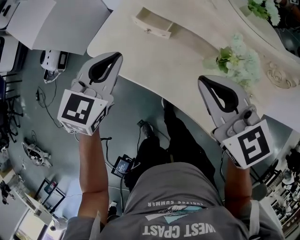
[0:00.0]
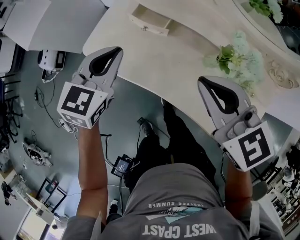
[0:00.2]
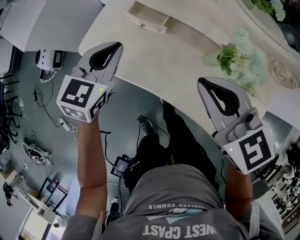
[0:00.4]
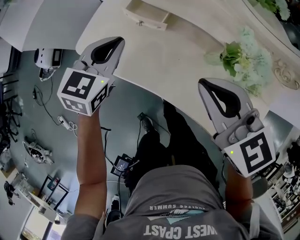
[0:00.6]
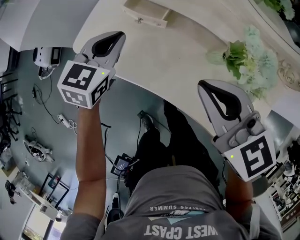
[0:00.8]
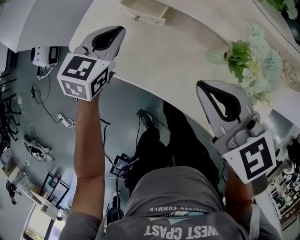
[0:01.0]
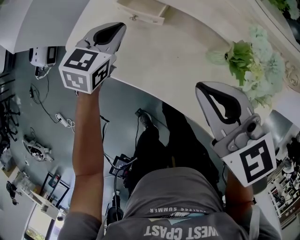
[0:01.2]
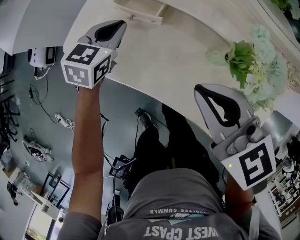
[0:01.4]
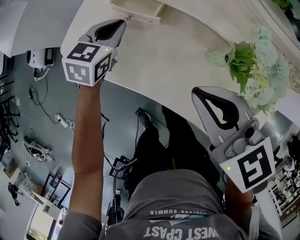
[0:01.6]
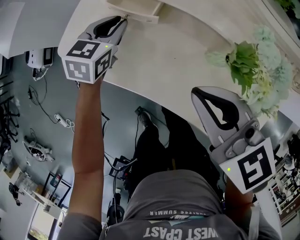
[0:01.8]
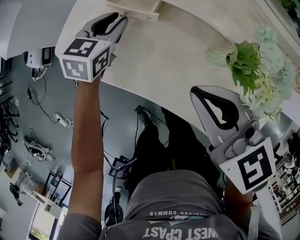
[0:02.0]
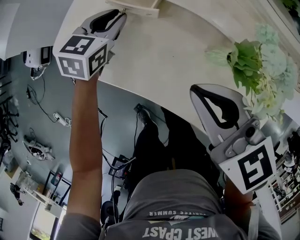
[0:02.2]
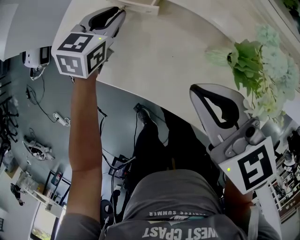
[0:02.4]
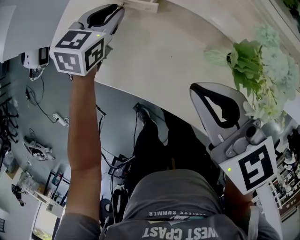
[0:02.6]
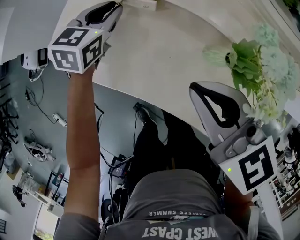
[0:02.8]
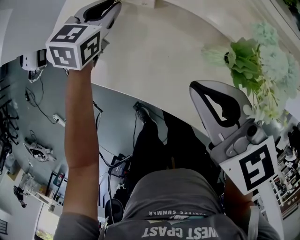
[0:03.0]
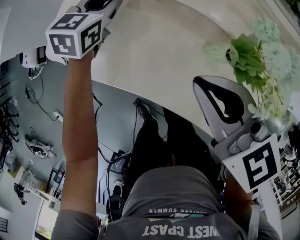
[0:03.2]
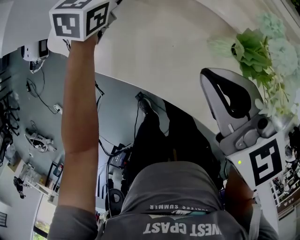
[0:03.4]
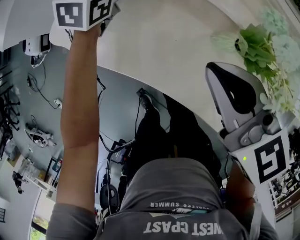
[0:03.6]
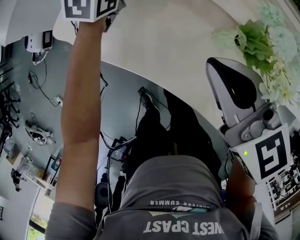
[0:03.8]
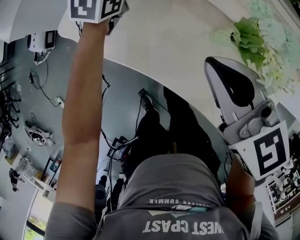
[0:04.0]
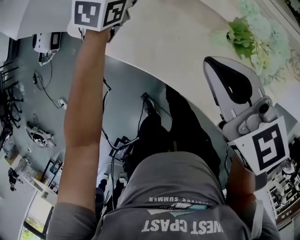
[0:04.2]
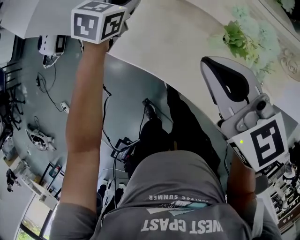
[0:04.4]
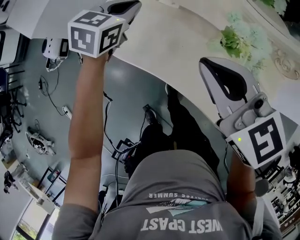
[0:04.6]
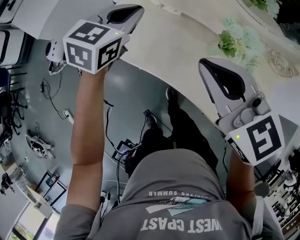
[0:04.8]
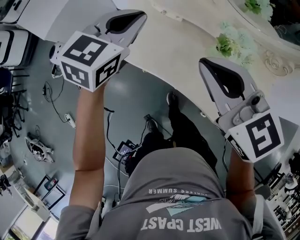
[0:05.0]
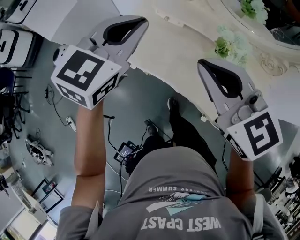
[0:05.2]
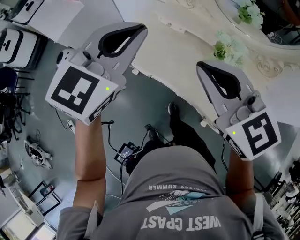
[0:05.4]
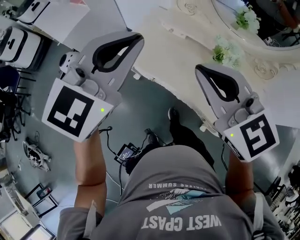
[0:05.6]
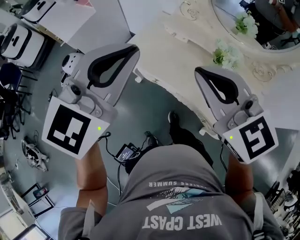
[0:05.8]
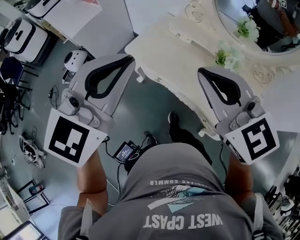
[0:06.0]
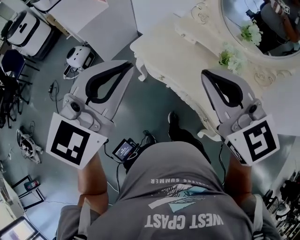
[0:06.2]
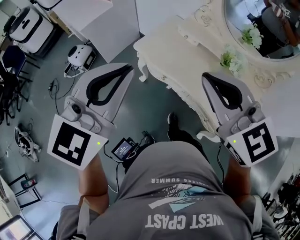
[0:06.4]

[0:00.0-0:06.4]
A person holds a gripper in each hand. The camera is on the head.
0:00.0 to 0:01.6: The left gripper shifts about 20 cm downward and forward. The right gripper heads downward, covering some 10 cm.
0:01.6 to 0:03.2: The left gripper heads forward, covering some 5 cm.
0:03.2 to 0:04.8: The right gripper heads upward and backward, covering about 15 cm, while the left gripper travels upward and backward by roughly 25 cm.
0:04.8 to 0:06.4: The right gripper moves backward, upward and to the left, about 30 cm, while the left gripper moves backward and upward, roughly 40 cm, and swivels roughly 20 degrees.

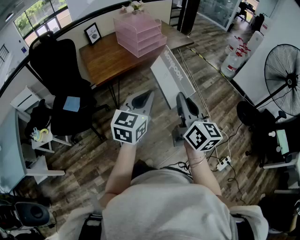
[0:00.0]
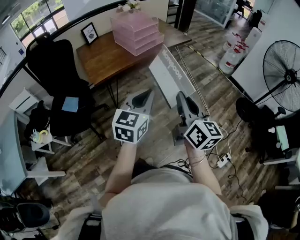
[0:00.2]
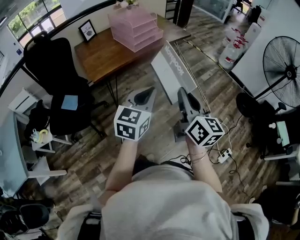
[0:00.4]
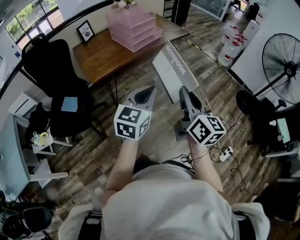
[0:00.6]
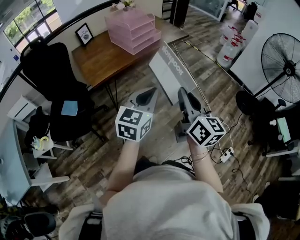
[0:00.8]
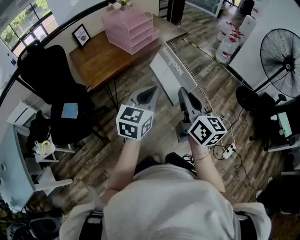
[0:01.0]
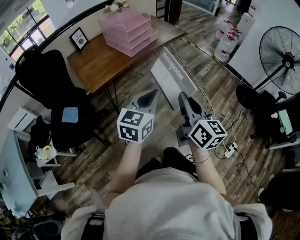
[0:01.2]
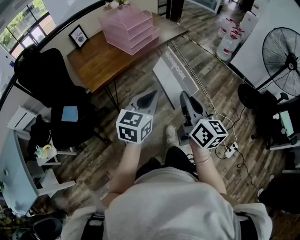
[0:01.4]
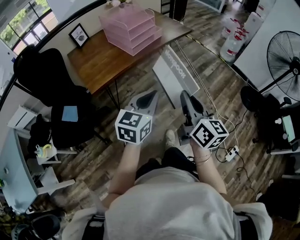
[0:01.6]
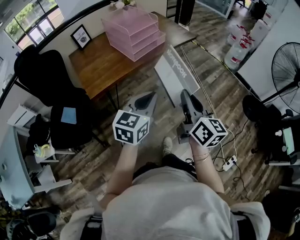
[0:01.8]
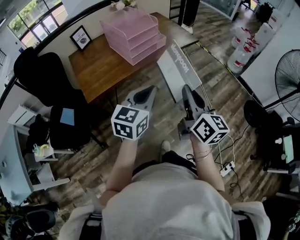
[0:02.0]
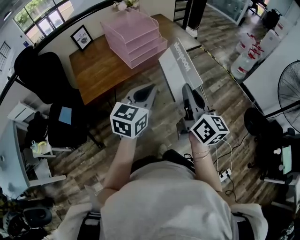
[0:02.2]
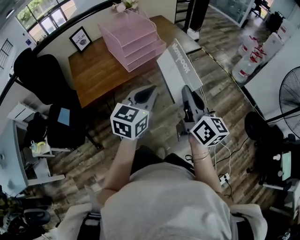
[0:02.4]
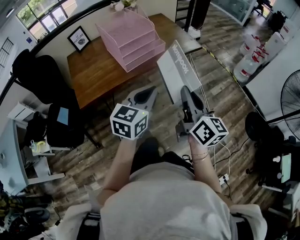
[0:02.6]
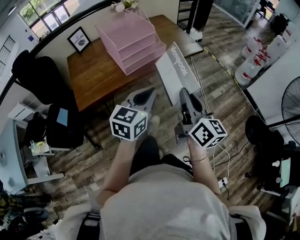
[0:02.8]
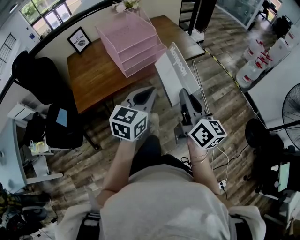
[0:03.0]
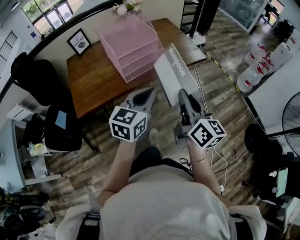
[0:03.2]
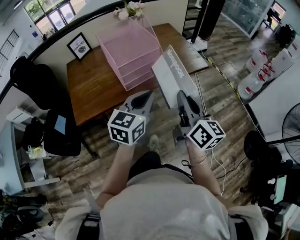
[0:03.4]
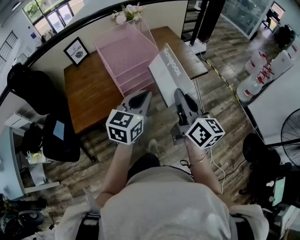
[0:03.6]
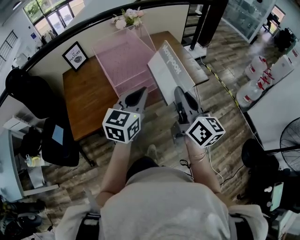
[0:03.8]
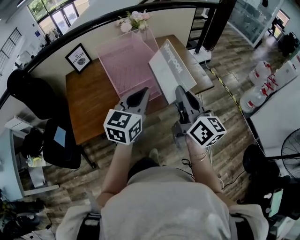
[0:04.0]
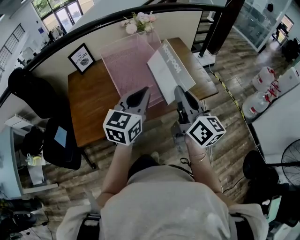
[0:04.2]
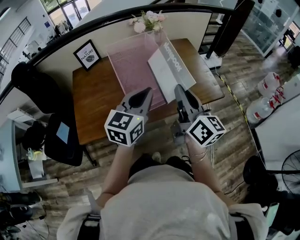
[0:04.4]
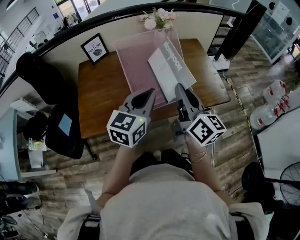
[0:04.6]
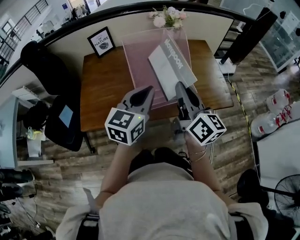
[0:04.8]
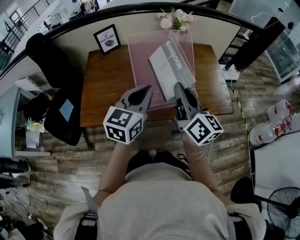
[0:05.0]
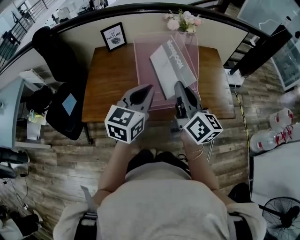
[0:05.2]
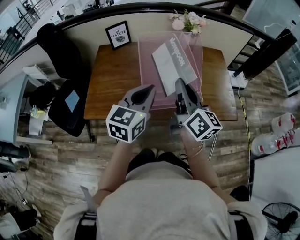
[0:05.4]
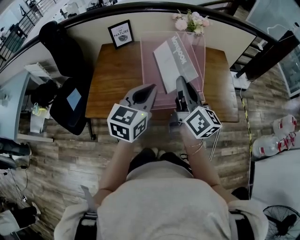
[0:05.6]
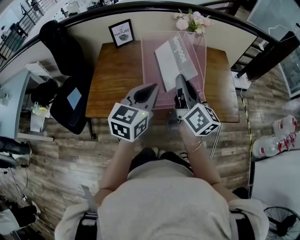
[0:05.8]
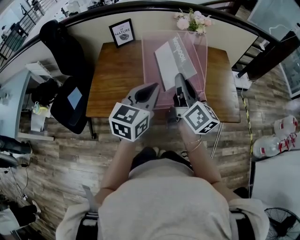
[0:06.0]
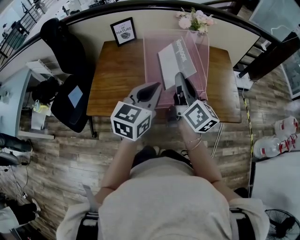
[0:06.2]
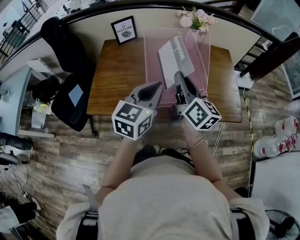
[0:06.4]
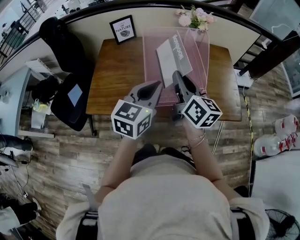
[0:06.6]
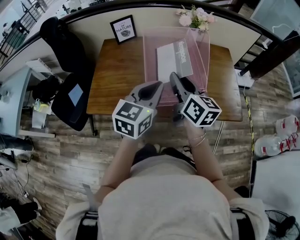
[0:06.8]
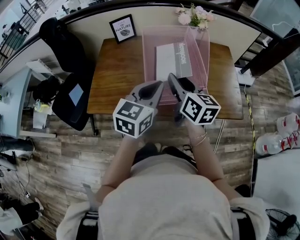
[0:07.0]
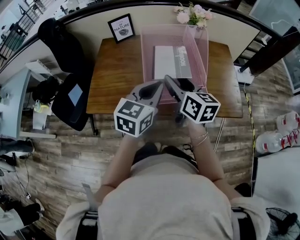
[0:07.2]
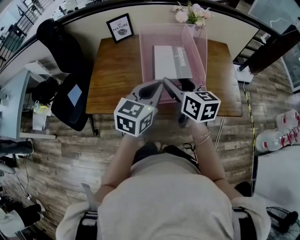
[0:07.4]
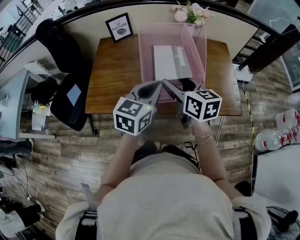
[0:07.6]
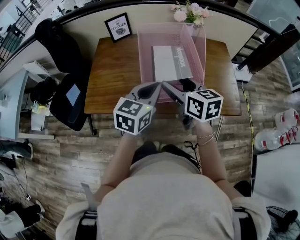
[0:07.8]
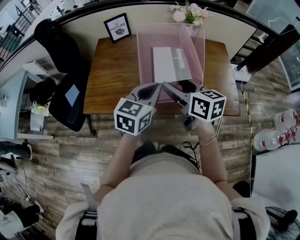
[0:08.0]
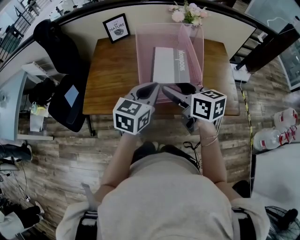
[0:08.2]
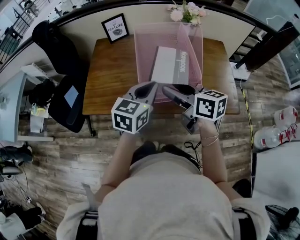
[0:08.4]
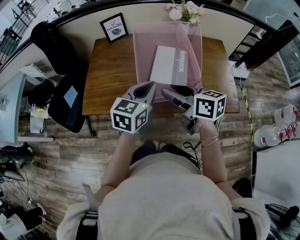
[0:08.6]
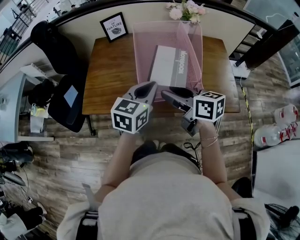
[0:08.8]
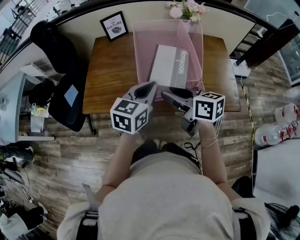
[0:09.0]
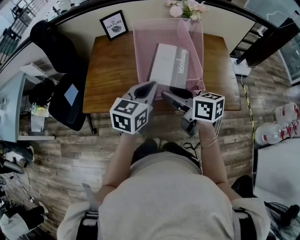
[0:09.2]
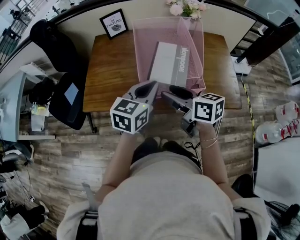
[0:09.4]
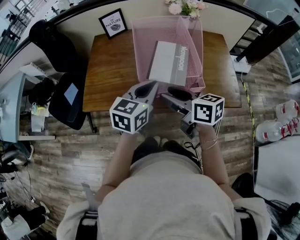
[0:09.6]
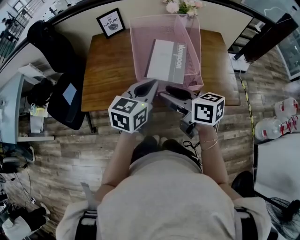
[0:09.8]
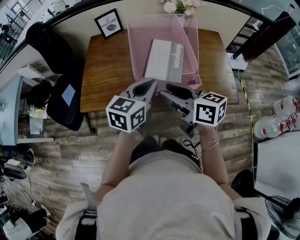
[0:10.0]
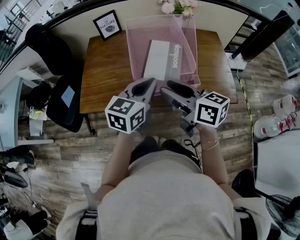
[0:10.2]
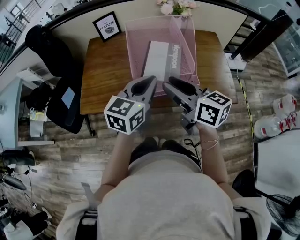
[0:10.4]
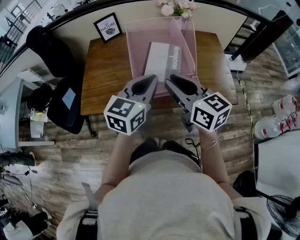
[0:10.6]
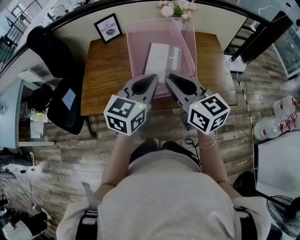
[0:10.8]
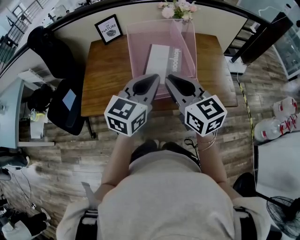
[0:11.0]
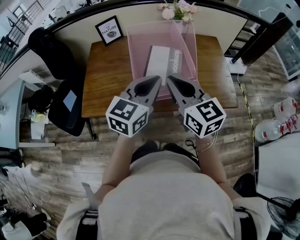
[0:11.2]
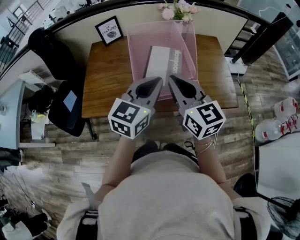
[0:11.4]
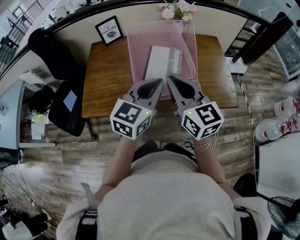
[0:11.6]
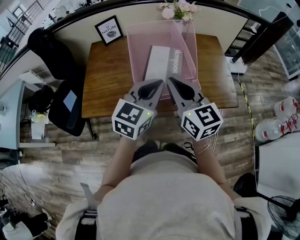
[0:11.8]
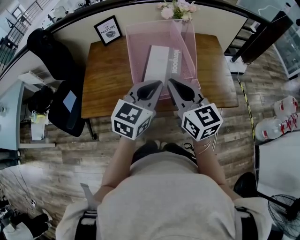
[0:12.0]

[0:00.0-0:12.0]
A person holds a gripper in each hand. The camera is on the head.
0:00.0 to 0:01.6: Both grippers move forward, approximately 10 cm.
0:01.6 to 0:03.0: Both grippers travel together forward, approximately 25 cm.
0:03.0 to 0:04.4: The two grippers go roughly 25 cm forward and to the left.
0:04.4 to 0:06.0: The left gripper changes place by about 5 cm; the right gripper goes about 10 cm forward and to the left.
0:06.0 to 0:07.6: The right gripper shifts roughly 5 cm downward, swivels some 40 degrees, and opens up.
0:07.6 to 0:09.0: The right gripper turns by approximately 20 degrees.
0:09.0 to 0:10.4: The right gripper moves upward, roughly 5 cm.
0:10.4 to 0:12.0: The right gripper rotates roughly 30 degrees, and closes.

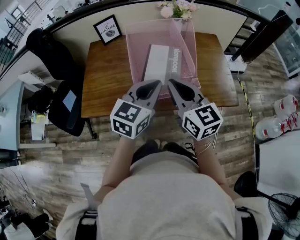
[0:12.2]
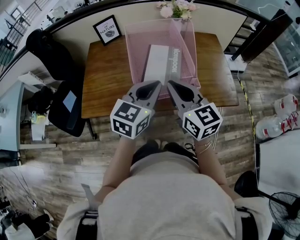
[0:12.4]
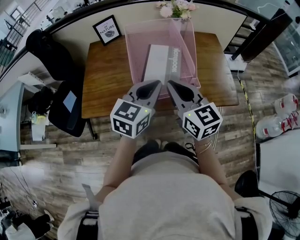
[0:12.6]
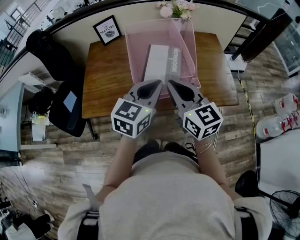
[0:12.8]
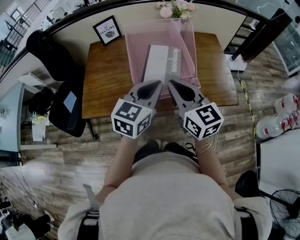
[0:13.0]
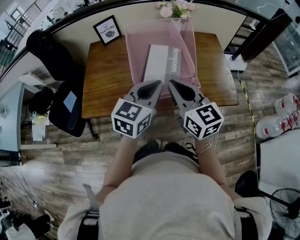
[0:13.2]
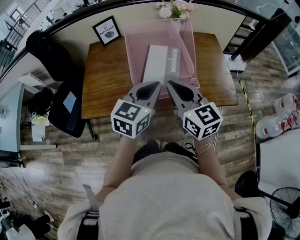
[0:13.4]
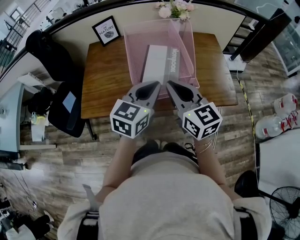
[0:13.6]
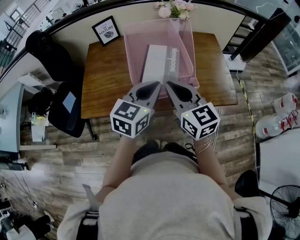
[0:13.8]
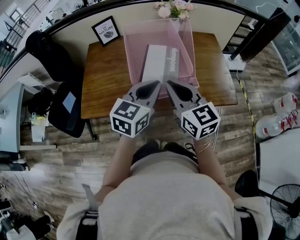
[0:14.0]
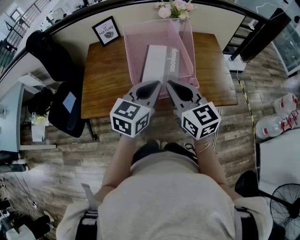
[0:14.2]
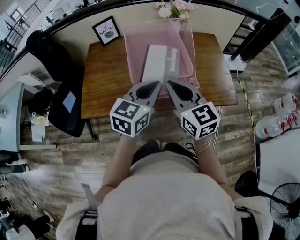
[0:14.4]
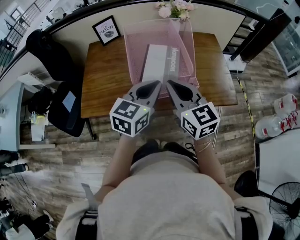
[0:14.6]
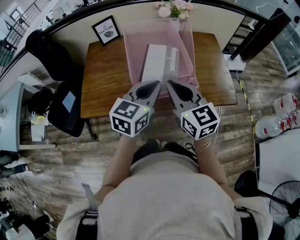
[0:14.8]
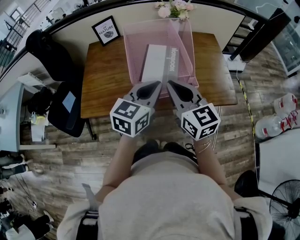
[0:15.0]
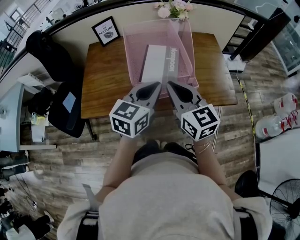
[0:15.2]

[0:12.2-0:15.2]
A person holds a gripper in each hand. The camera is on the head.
0:12.2 to 0:13.8: Both grippers stay put.
0:13.8 to 0:15.2: Both grippers stay about where they are.

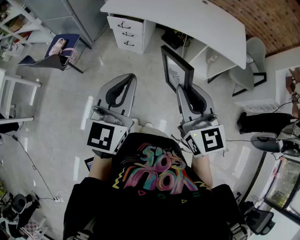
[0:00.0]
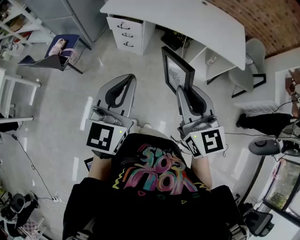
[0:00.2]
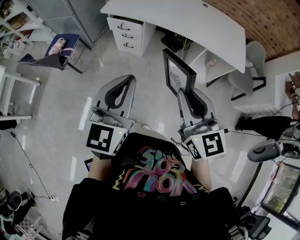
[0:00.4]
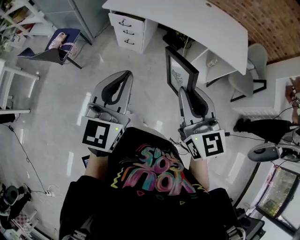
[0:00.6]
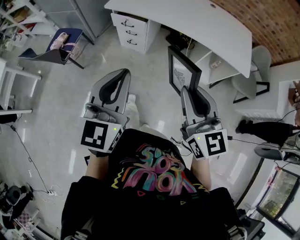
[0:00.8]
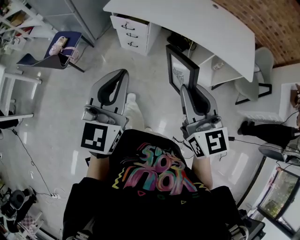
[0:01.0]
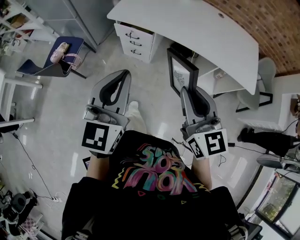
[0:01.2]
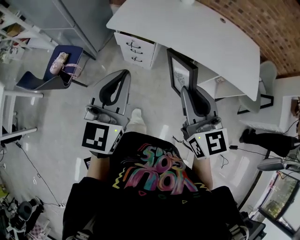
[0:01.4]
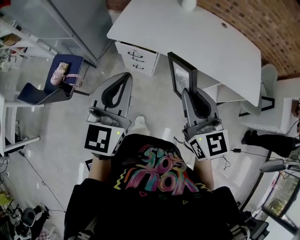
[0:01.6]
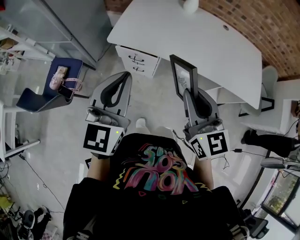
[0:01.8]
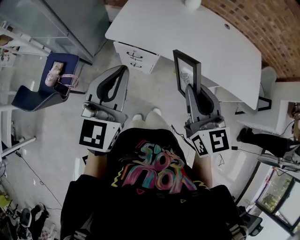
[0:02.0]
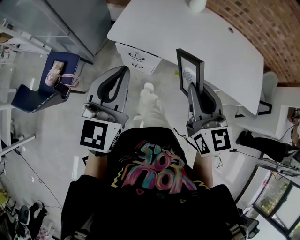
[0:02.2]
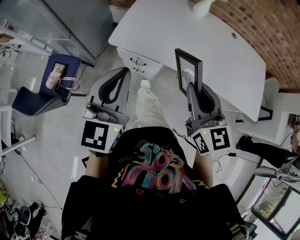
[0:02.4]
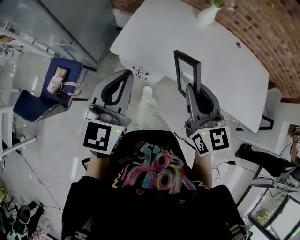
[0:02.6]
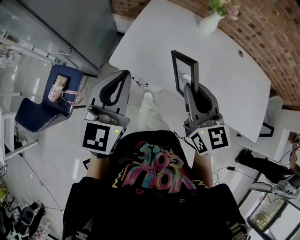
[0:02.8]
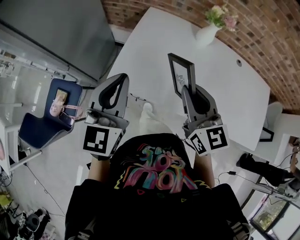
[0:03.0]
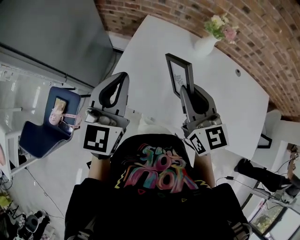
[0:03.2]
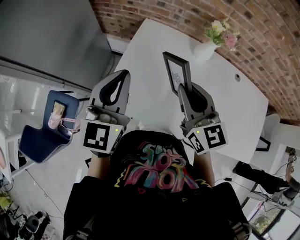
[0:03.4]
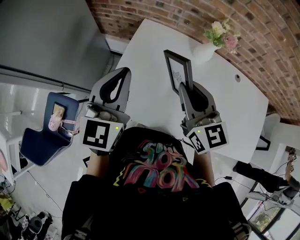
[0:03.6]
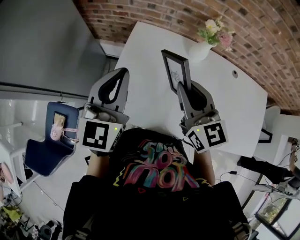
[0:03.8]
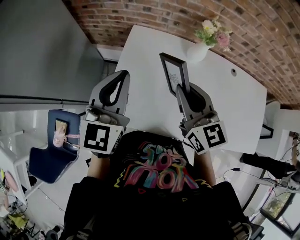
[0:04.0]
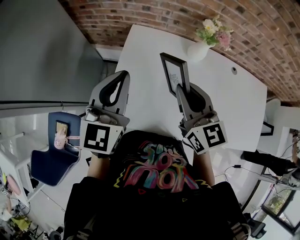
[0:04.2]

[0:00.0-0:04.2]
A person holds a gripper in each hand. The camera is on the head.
0:00.0 to 0:01.4: The grippers both shift forward by about 25 cm.
0:01.4 to 0:02.8: Both grippers travel together forward, about 35 cm.
0:02.8 to 0:04.2: The grippers both shift forward by approximately 30 cm.
